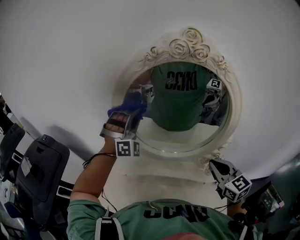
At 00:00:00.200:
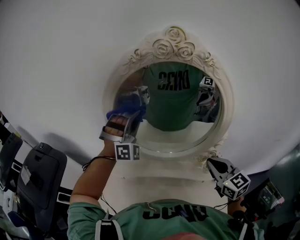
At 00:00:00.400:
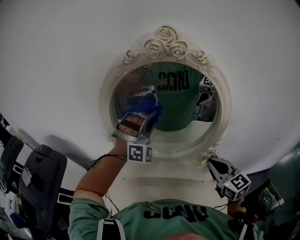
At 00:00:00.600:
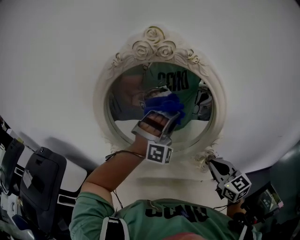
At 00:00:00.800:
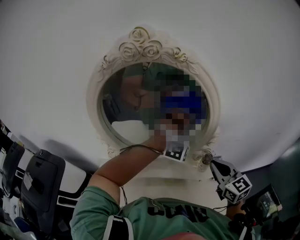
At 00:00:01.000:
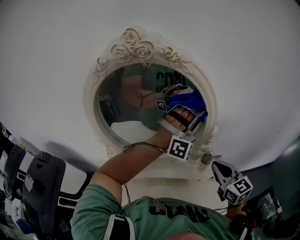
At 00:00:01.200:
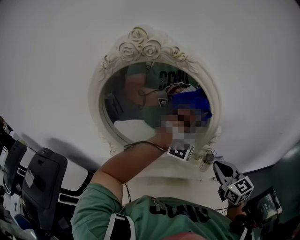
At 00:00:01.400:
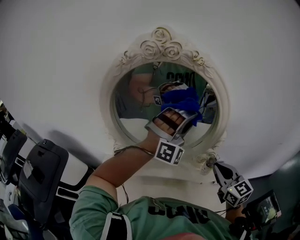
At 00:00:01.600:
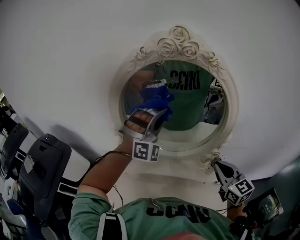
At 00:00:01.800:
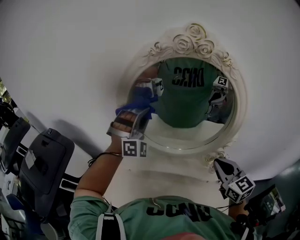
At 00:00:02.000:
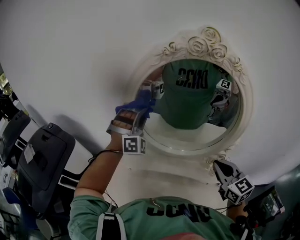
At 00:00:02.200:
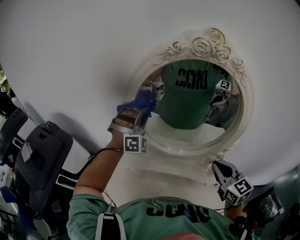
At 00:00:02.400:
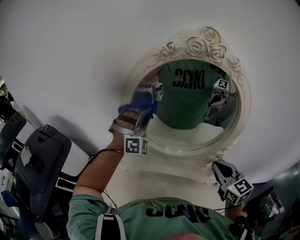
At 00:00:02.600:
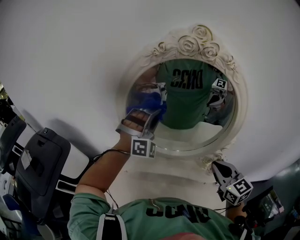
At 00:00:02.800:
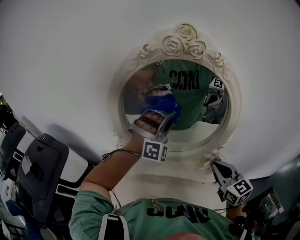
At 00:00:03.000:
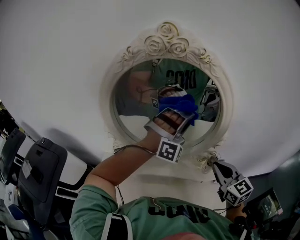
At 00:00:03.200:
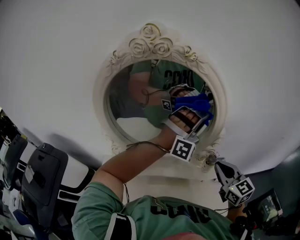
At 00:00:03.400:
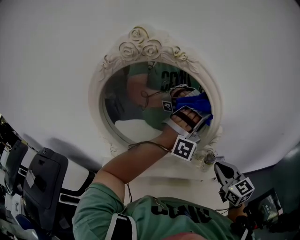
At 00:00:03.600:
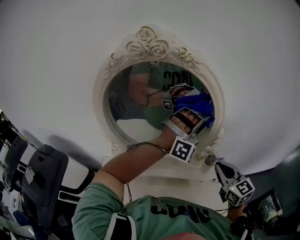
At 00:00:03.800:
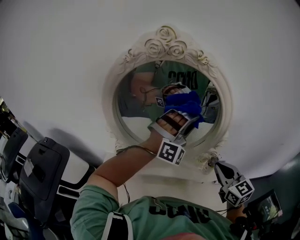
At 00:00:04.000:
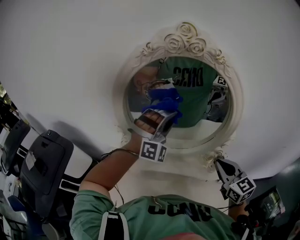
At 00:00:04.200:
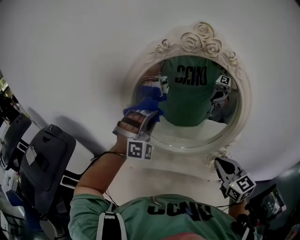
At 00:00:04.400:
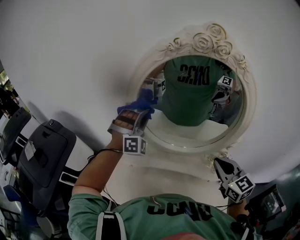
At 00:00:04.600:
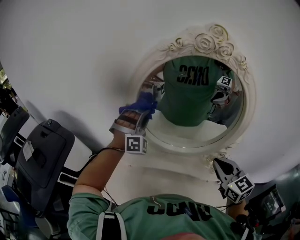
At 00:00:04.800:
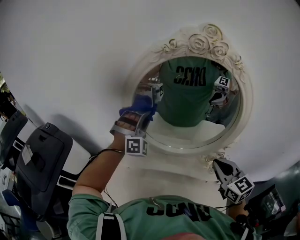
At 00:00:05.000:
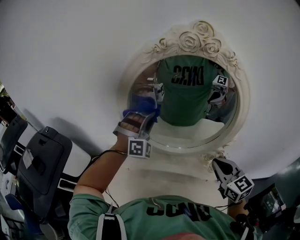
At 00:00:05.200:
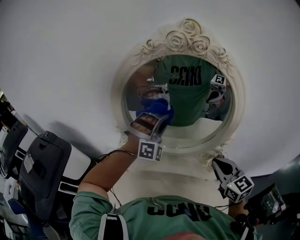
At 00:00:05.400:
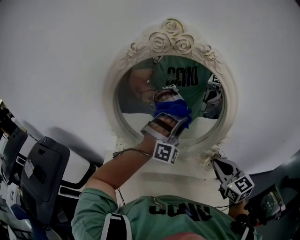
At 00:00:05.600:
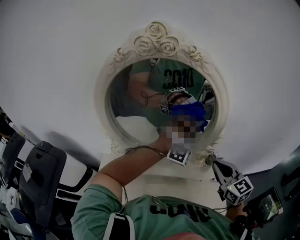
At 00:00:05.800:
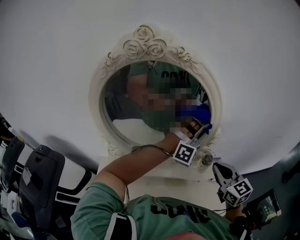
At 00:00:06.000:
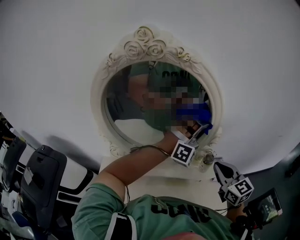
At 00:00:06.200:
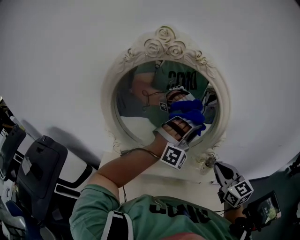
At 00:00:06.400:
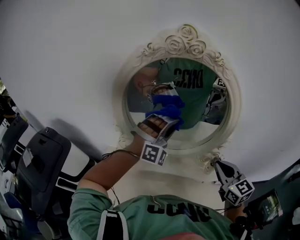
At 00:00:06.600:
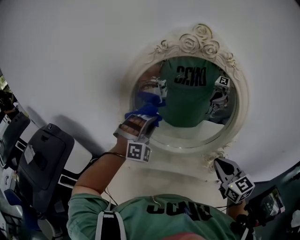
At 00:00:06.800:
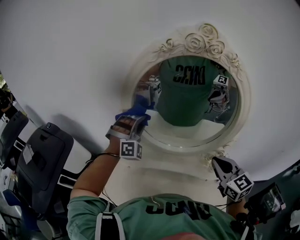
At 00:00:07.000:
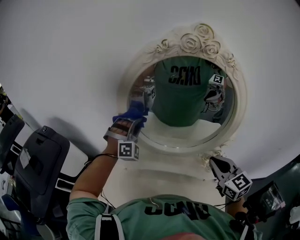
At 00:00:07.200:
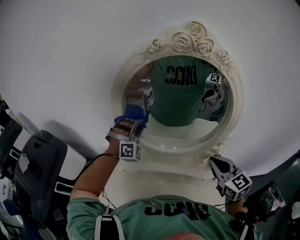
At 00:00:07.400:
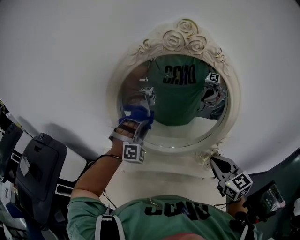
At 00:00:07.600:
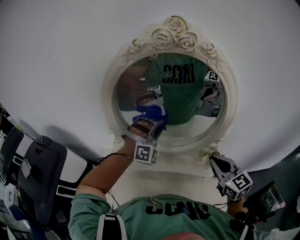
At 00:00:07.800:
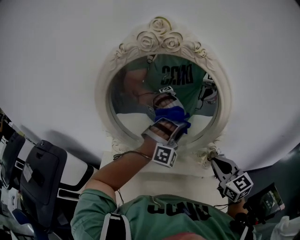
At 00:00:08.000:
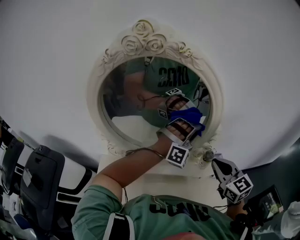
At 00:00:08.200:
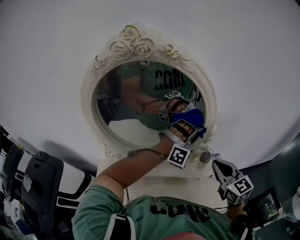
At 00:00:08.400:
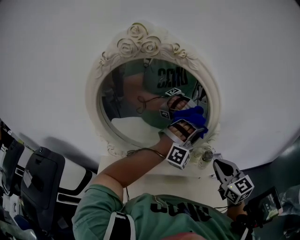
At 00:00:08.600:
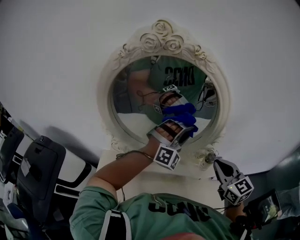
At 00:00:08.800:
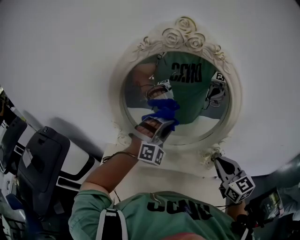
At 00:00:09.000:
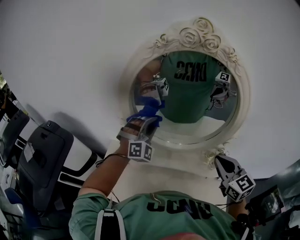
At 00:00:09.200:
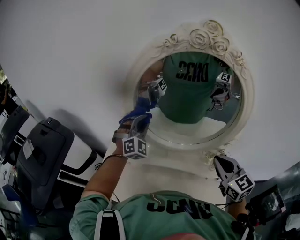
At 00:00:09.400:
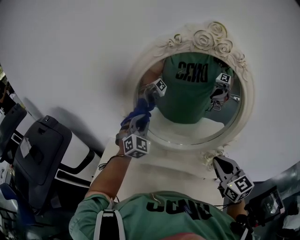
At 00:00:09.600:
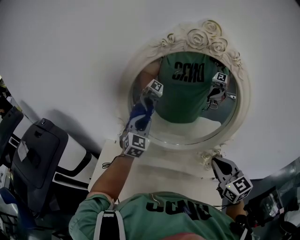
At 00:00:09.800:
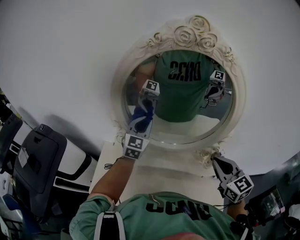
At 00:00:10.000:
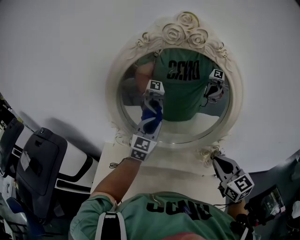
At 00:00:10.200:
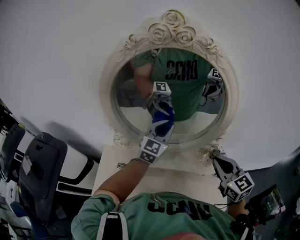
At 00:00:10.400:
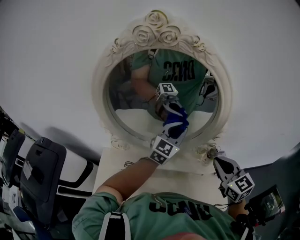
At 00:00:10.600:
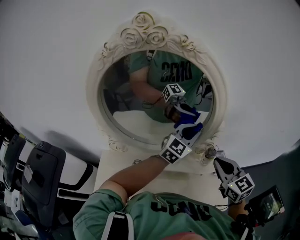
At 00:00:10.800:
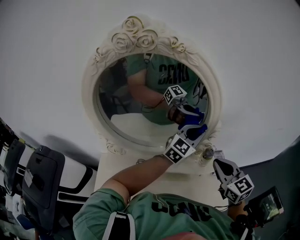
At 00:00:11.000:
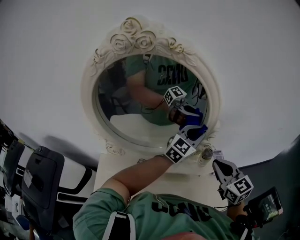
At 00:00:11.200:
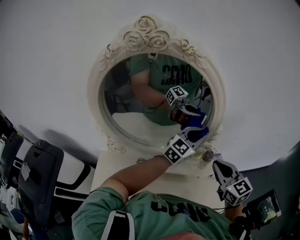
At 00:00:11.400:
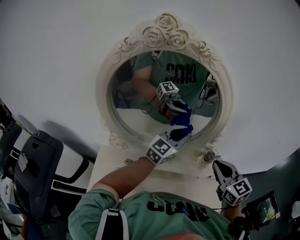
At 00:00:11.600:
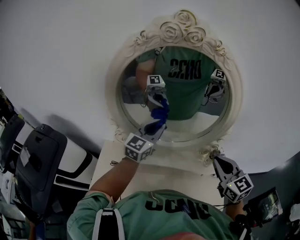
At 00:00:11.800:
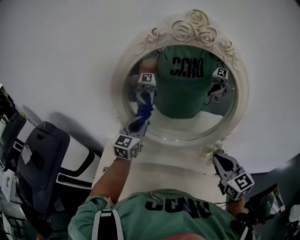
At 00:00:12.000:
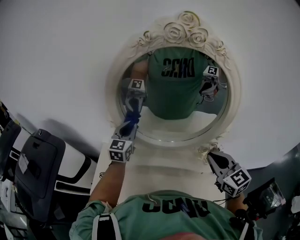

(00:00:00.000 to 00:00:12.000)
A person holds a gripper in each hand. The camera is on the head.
00:00:00.000 - 00:00:01.600: The left gripper travels to the right and back again, about 35 cm each way.
00:00:01.600 - 00:00:03.000: The left gripper moves to the right, some 15 cm.
00:00:03.000 - 00:00:04.400: The left gripper heads to the left, covering approximately 25 cm, and swivels approximately 30 degrees. Meanwhile the right gripper travels to the left by about 10 cm.
00:00:04.400 - 00:00:06.000: The left gripper moves to the right, approximately 40 cm, and swivels roughly 40 degrees. The right gripper shifts about 10 cm to the right.
00:00:06.000 - 00:00:07.600: The left gripper shifts some 25 cm to the left, and turns by approximately 20 degrees, while the right gripper is displaced to the left by about 5 cm.
00:00:07.600 - 00:00:09.000: The left gripper goes to the right and returns, approximately 25 cm each way, while the right gripper travels to the right and back again, approximately 5 cm each way.
00:00:09.000 - 00:00:10.400: The left gripper heads to the right, covering roughly 20 cm, and rolls counterclockwise, seen from behind, by roughly 50 degrees, while the right gripper shifts roughly 5 cm to the right.
00:00:10.400 - 00:00:12.000: The right gripper goes about 5 cm to the left. The left gripper travels to the left by some 25 cm, and changes its angle by roughly 30 degrees.

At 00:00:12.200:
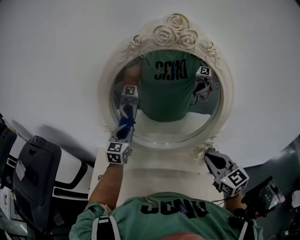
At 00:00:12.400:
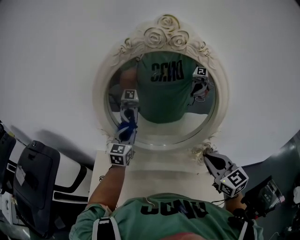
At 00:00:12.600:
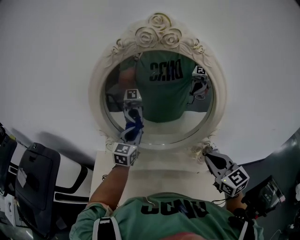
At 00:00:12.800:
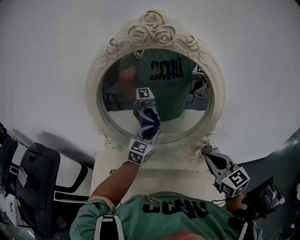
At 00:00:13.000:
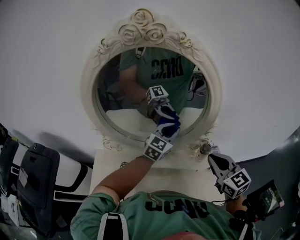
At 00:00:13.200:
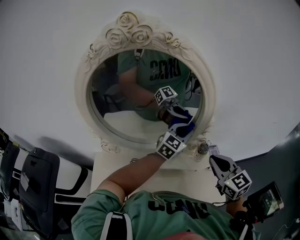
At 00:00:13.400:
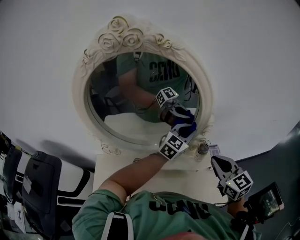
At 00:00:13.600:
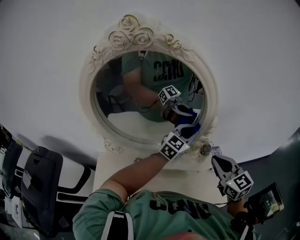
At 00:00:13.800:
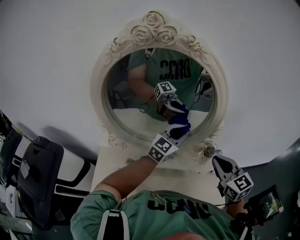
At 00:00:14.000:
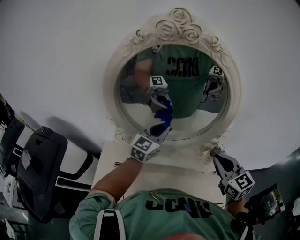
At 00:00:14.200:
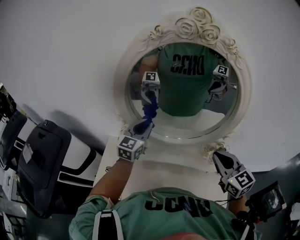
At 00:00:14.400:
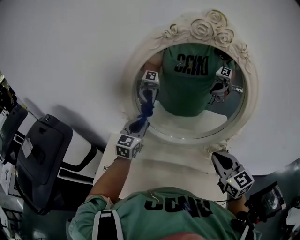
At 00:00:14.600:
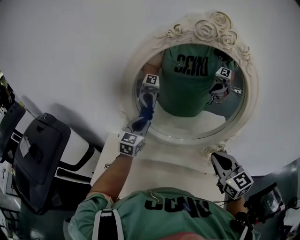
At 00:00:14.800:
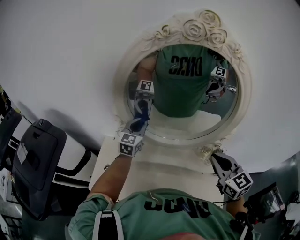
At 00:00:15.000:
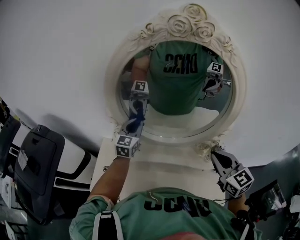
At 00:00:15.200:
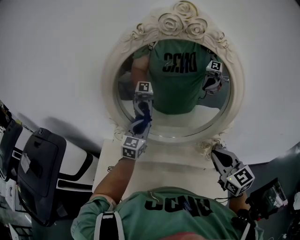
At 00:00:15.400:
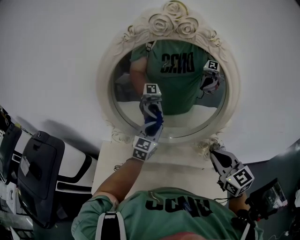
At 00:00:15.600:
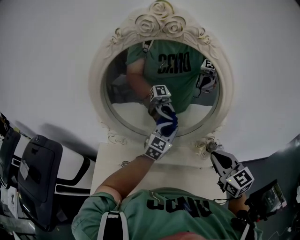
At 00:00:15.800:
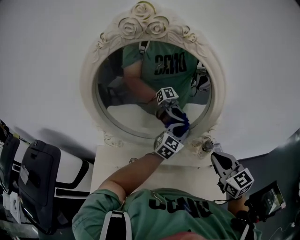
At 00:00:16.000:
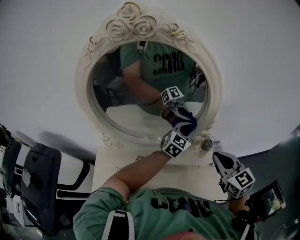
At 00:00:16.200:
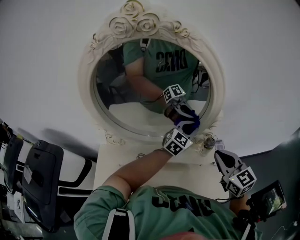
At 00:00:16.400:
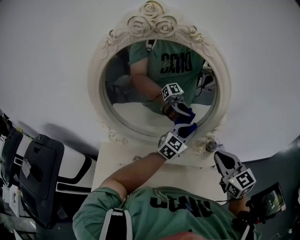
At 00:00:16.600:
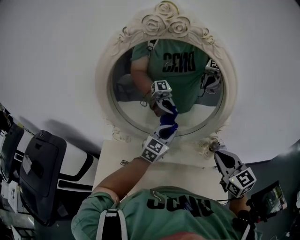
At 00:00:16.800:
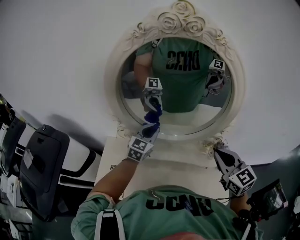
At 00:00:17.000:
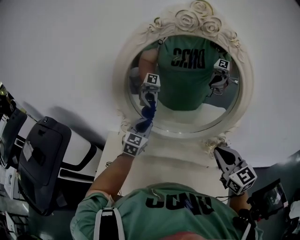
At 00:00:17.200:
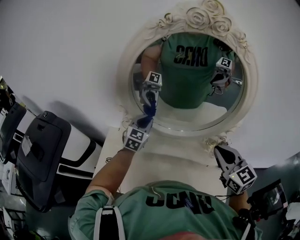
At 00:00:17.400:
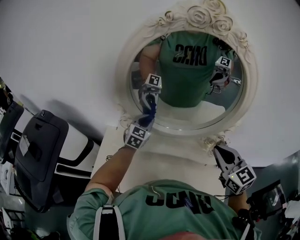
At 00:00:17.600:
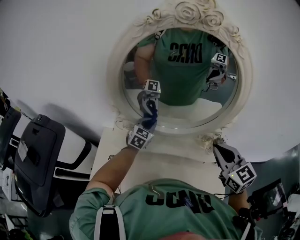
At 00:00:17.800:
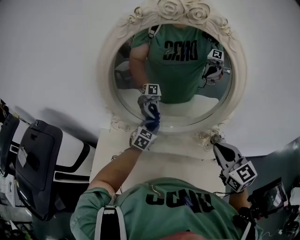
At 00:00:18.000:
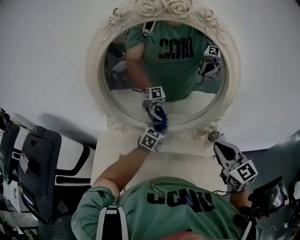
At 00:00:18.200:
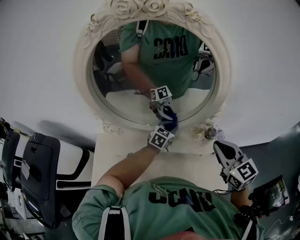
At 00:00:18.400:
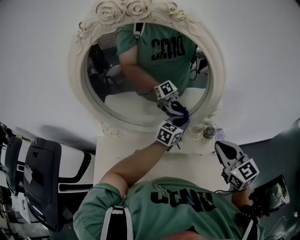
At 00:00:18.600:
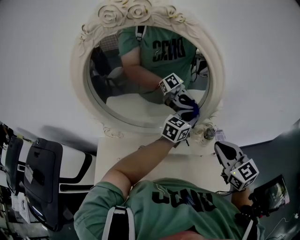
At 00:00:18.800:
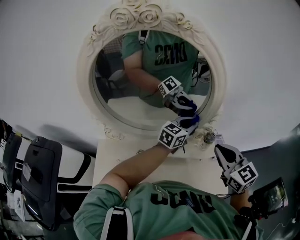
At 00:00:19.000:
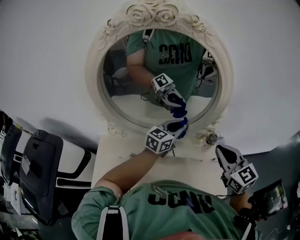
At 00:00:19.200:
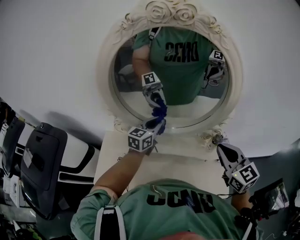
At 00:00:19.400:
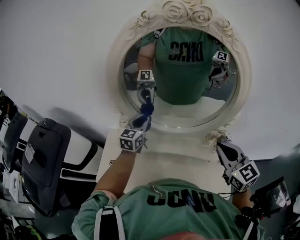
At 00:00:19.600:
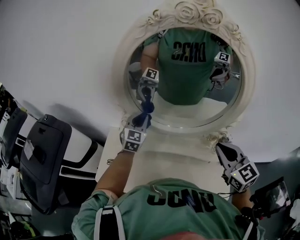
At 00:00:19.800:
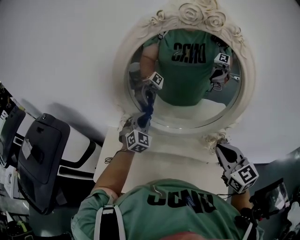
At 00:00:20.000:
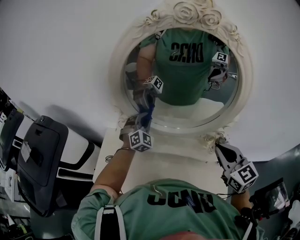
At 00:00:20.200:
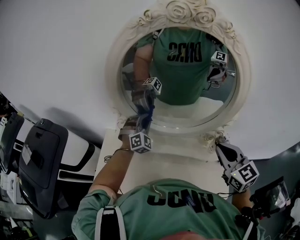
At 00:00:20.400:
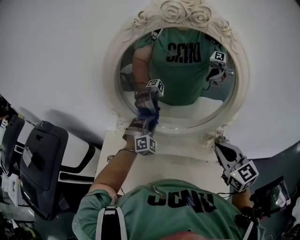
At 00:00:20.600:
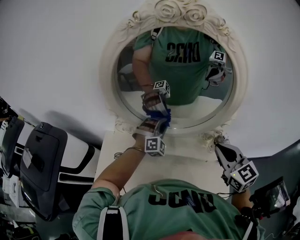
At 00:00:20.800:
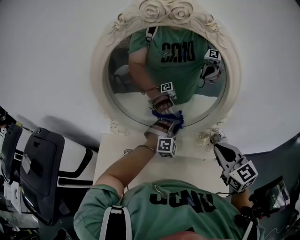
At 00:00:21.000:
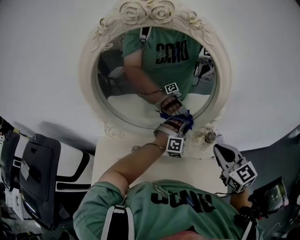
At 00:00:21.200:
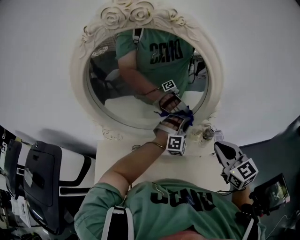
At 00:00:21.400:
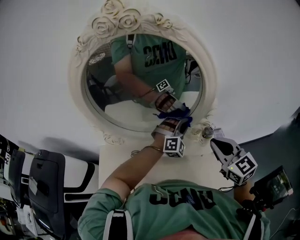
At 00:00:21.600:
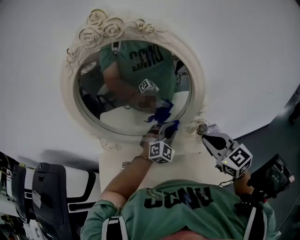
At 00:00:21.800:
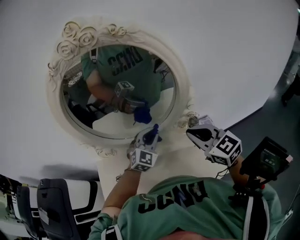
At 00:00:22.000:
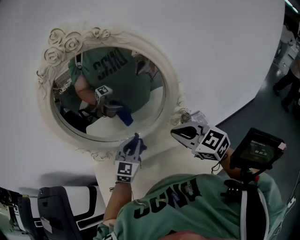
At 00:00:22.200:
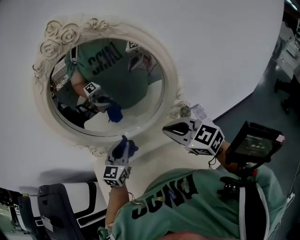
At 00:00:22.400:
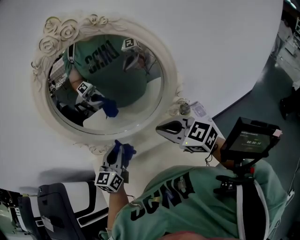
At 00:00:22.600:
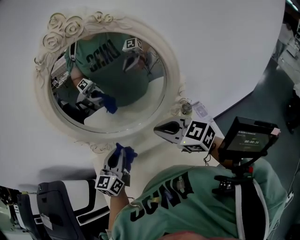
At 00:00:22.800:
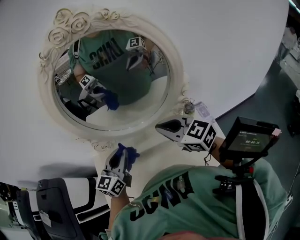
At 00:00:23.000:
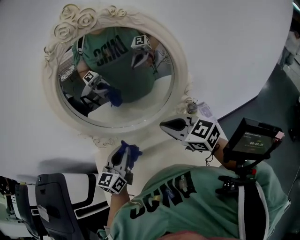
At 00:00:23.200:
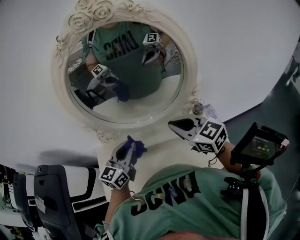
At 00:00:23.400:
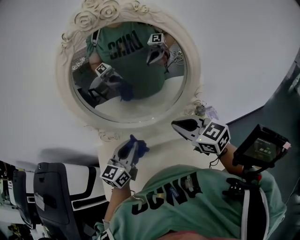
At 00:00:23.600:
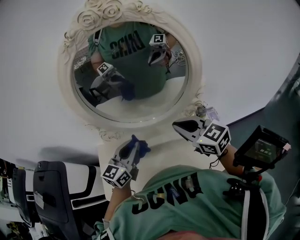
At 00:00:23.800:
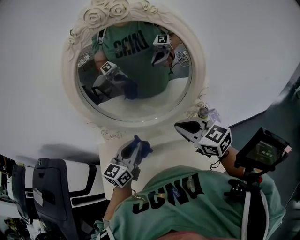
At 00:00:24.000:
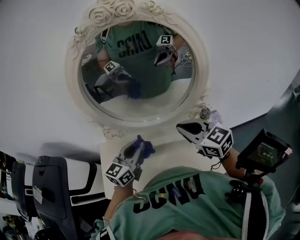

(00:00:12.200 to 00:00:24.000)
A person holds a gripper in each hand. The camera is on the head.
00:00:12.200 - 00:00:13.600: The right gripper shifts some 10 cm to the right. The left gripper travels to the right by roughly 35 cm, and swivels roughly 40 degrees.
00:00:13.600 - 00:00:15.200: The right gripper travels to the left by some 10 cm. Meanwhile the left gripper shifts about 30 cm to the left, and changes its angle by some 40 degrees.
00:00:15.200 - 00:00:16.600: The left gripper goes some 15 cm to the right, and rotates approximately 20 degrees.
00:00:16.600 - 00:00:18.200: The right gripper reaches about 5 cm to the left, then returns; the left gripper moves downward, roughly 15 cm, and goes to the left and returns, some 20 cm each way.
00:00:18.200 - 00:00:19.600: The right gripper shifts by approximately 5 cm. Meanwhile the left gripper moves some 30 cm, and rotates roughly 40 degrees.
00:00:19.600 - 00:00:21.000: The left gripper goes about 30 cm to the right, and rolls clockwise, seen from behind, by some 60 degrees, while the right gripper heads to the right, covering about 5 cm.
00:00:21.000 - 00:00:22.600: The left gripper travels to the left and backward by approximately 30 cm, and twists about 80 degrees counterclockwise, seen from behind; the right gripper is displaced to the left by roughly 15 cm.
00:00:22.600 - 00:00:24.000: The grippers stay close to where they were, moving slightly.
